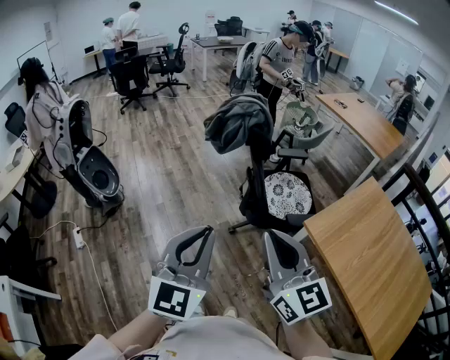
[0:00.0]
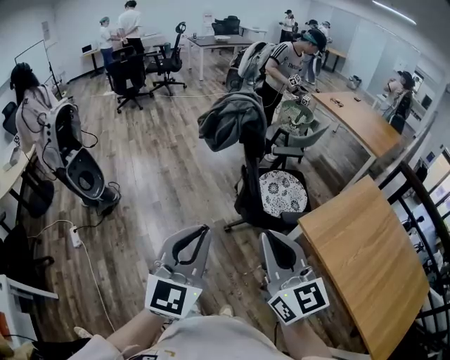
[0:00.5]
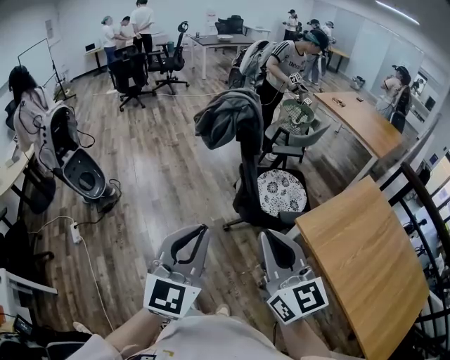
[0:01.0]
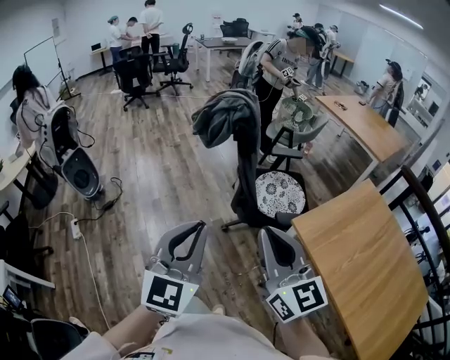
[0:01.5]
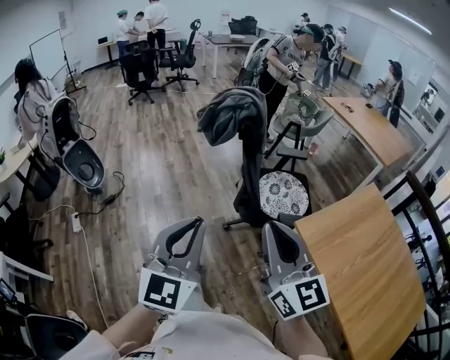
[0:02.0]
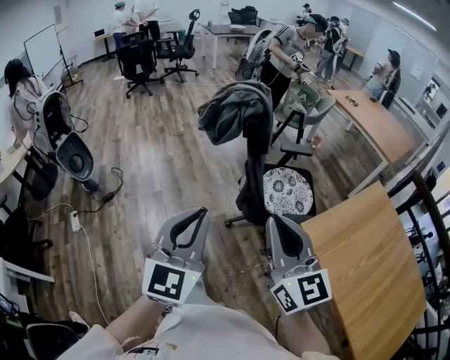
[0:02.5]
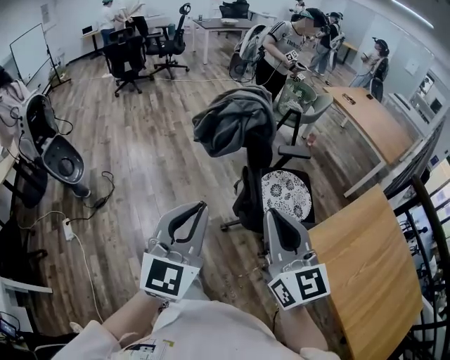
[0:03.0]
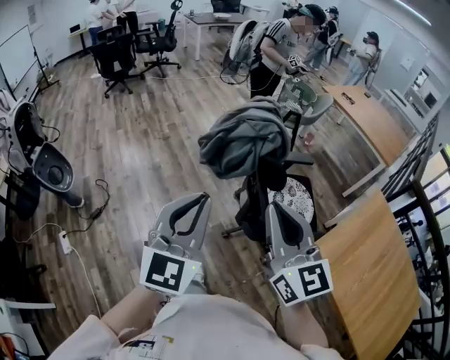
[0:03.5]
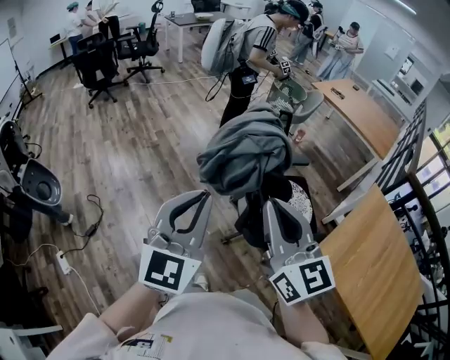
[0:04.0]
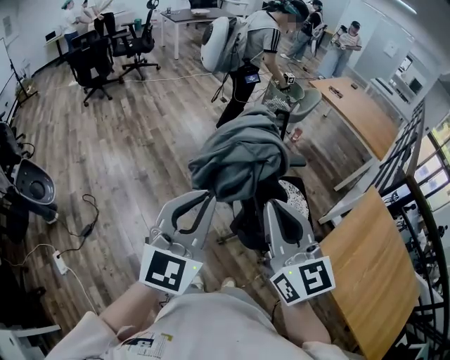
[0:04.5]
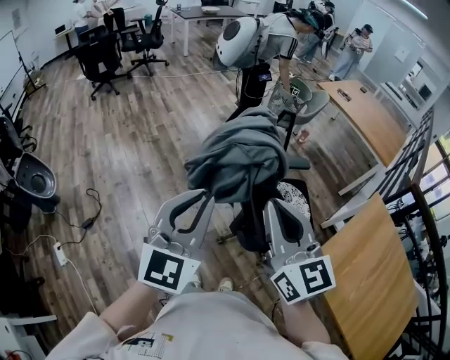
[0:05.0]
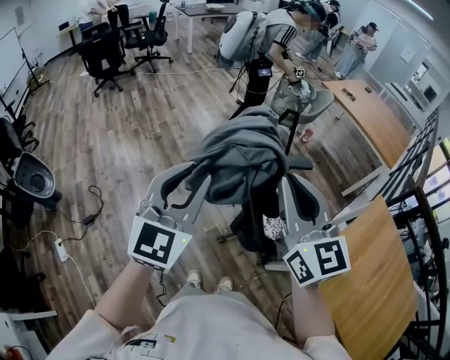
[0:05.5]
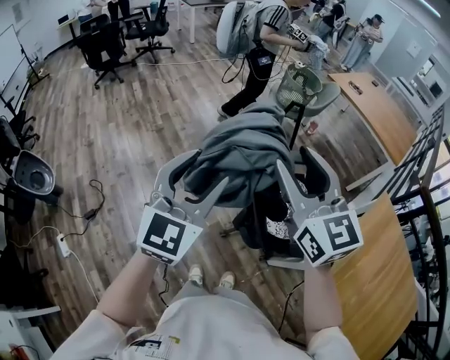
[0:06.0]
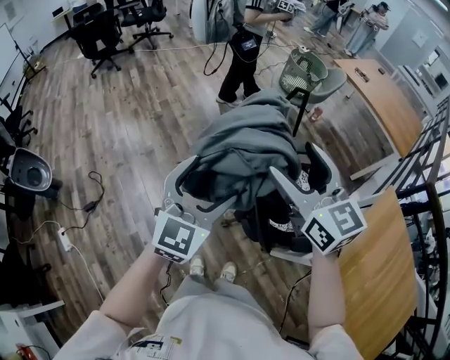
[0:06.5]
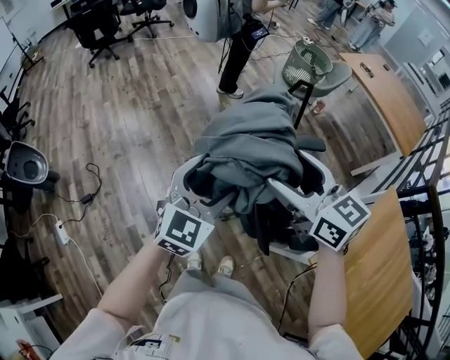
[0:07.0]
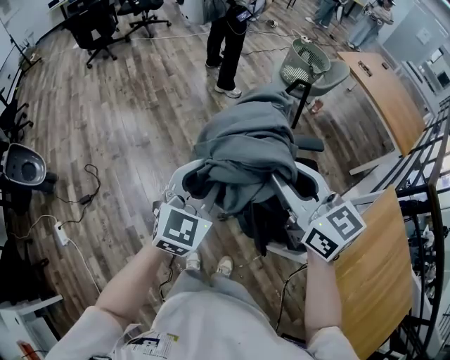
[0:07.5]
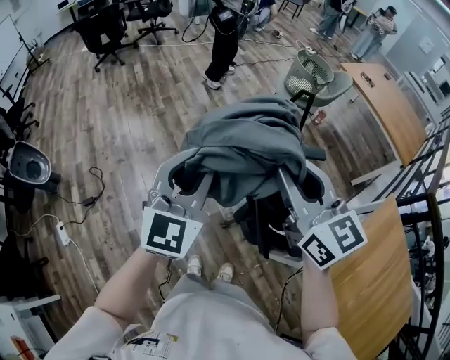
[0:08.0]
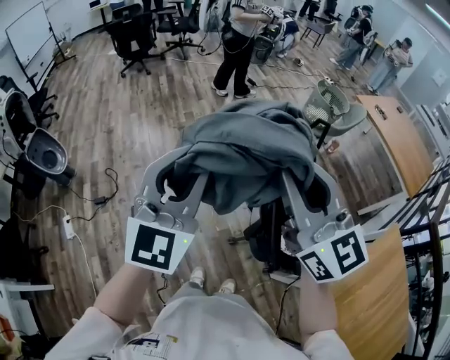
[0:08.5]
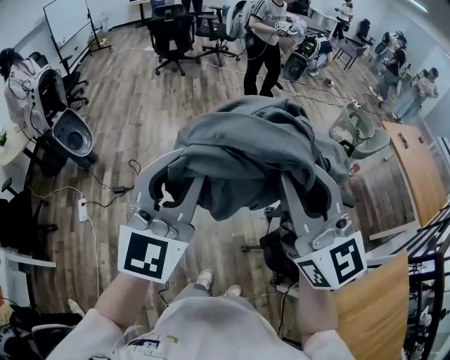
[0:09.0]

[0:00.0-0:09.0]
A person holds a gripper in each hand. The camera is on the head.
0:00.0 to 0:02.0: Both grippers travel together to the right, about 5 cm.
0:02.0 to 0:04.5: The pair of grippers is taken forward, about 40 cm.
0:04.5 to 0:07.0: Both grippers move forward and downward, approximately 25 cm. The left gripper opens up. The right gripper rotates some 30 degrees, and opens its fingers.
0:07.0 to 0:09.0: Both grippers travel together to the left and upward, about 30 cm. The right gripper turns by approximately 30 degrees, and closes its fingers, while the left gripper rotates about 40 degrees, and closes up.

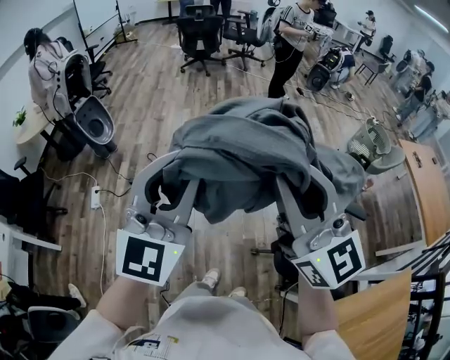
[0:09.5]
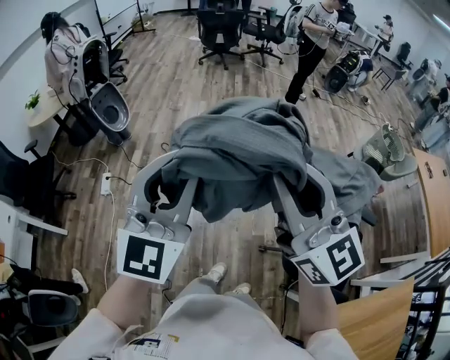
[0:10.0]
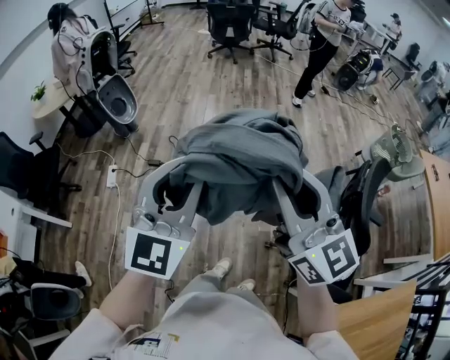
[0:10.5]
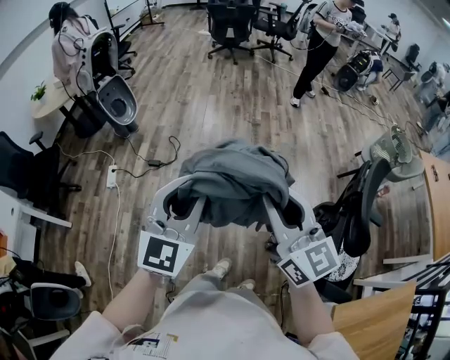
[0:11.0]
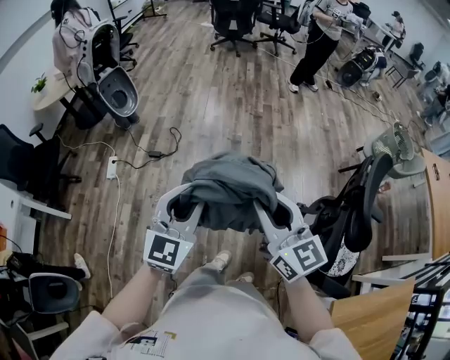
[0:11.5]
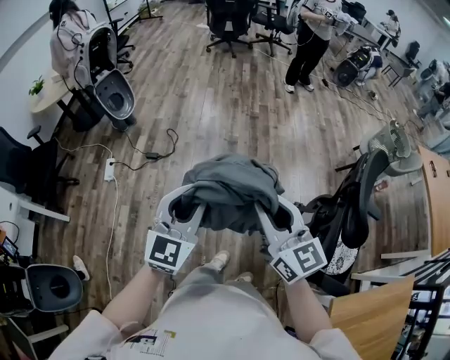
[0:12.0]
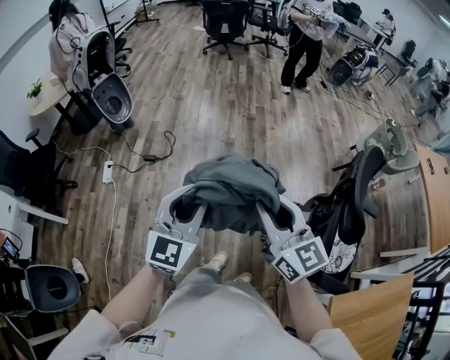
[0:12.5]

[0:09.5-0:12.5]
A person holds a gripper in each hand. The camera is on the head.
0:09.5 to 0:11.0: The grippers both shift downward and to the left by approximately 15 cm.
0:11.0 to 0:12.5: The right gripper ends up some 5 cm from where it was. The left gripper shifts about 5 cm downward.

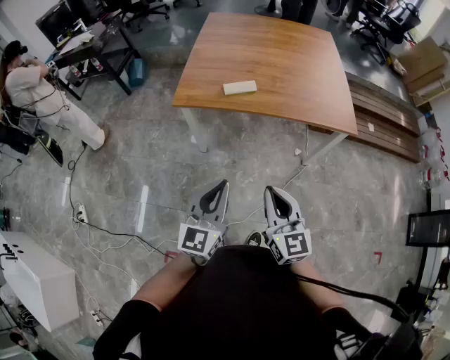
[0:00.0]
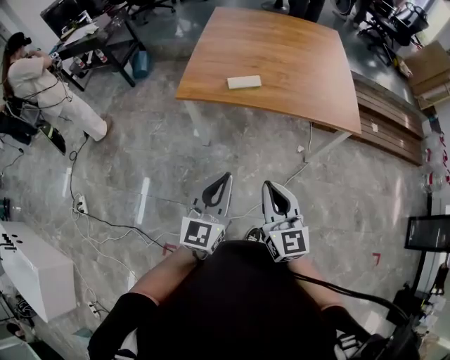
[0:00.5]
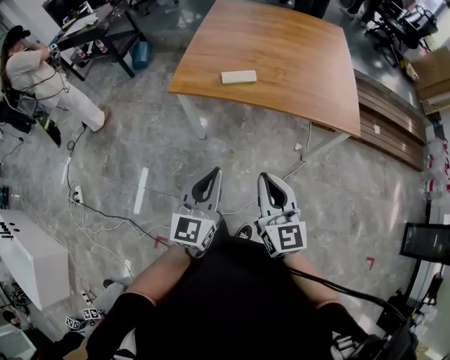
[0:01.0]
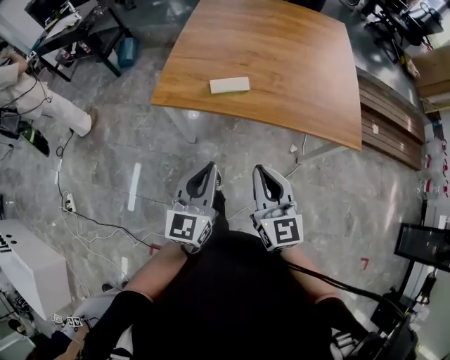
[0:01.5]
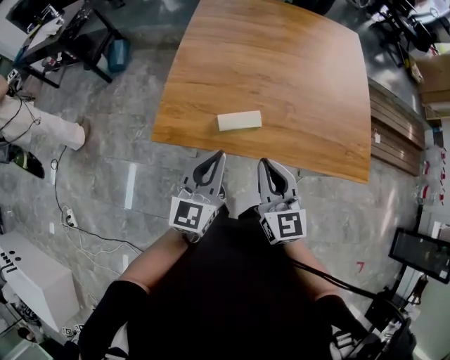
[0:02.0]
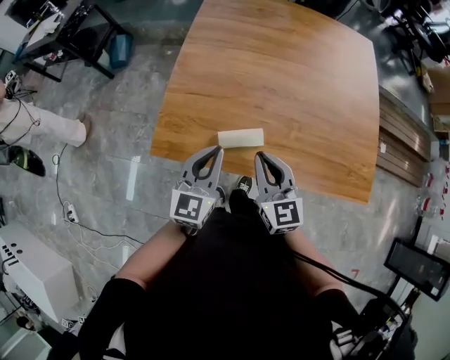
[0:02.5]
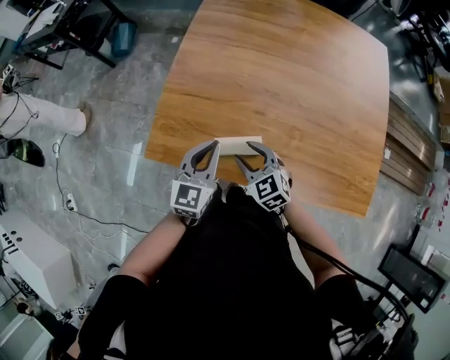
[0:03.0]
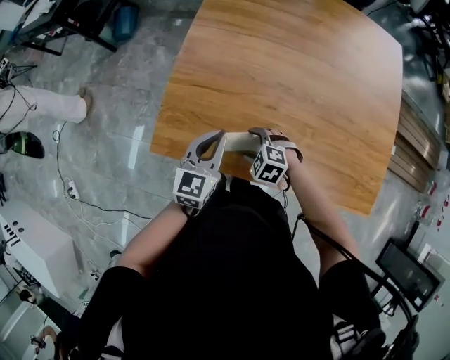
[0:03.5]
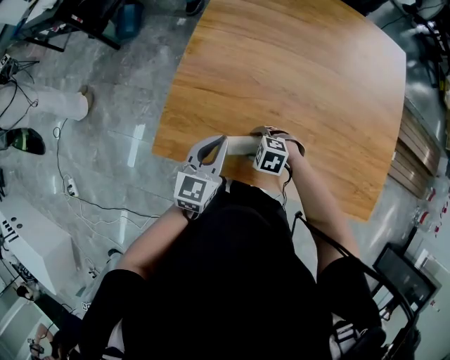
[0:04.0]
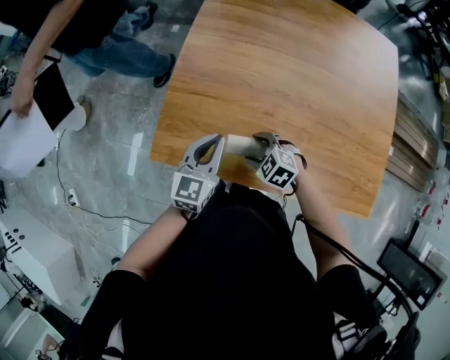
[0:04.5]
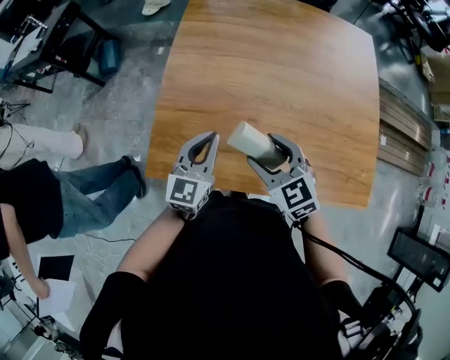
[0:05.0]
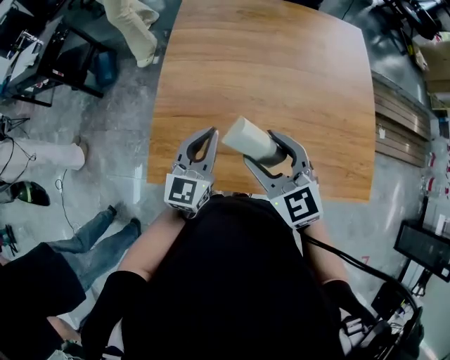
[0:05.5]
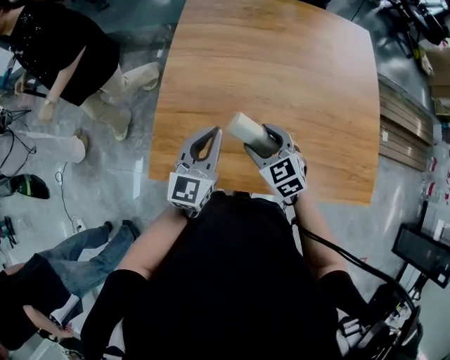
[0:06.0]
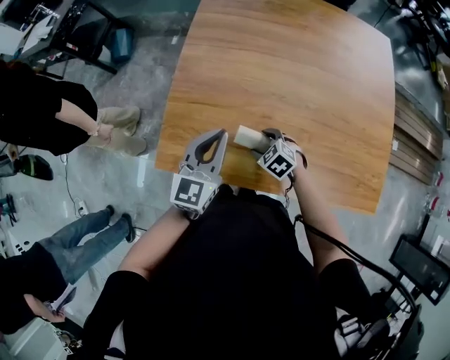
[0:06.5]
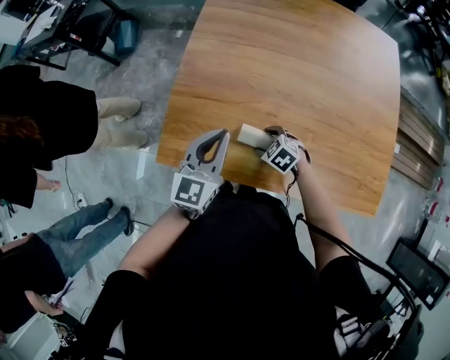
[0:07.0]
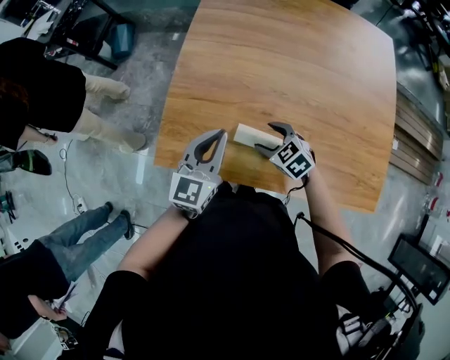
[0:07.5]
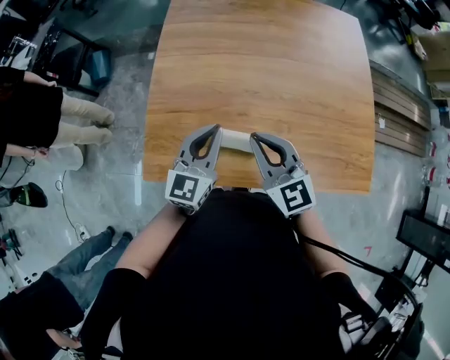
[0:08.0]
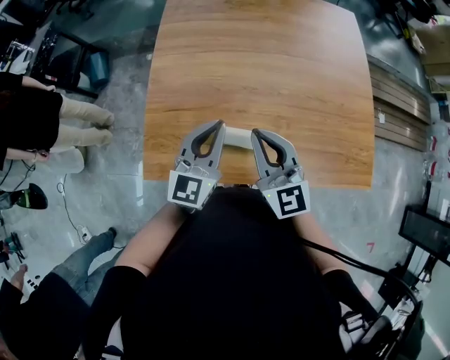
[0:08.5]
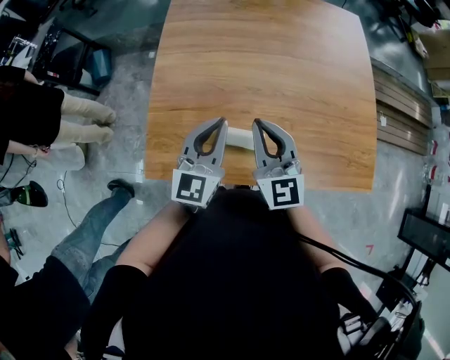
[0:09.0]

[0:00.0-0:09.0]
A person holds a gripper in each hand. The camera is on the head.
0:00.0 to 0:02.0: Both grippers are carried forward, about 40 cm.
0:02.0 to 0:04.5: The right gripper heads downward, covering roughly 25 cm, points its fingers some 50 degrees further downward, and opens its fingers. The left gripper shifts by roughly 25 cm.
0:04.5 to 0:07.0: The right gripper travels upward and back again, some 25 cm each way.
0:07.0 to 0:09.0: The left gripper shifts by approximately 10 cm. Meanwhile the right gripper travels upward by about 30 cm, points its fingers some 60 degrees further upward, and closes up.

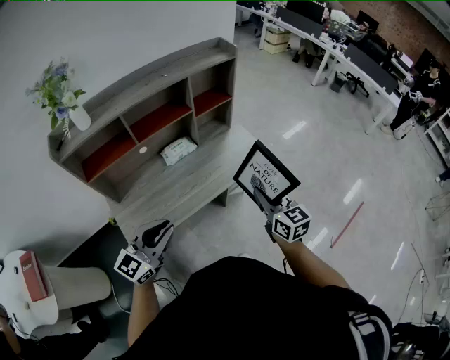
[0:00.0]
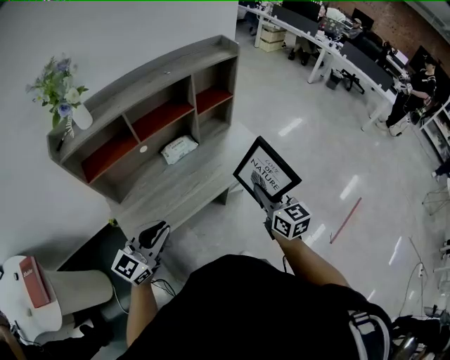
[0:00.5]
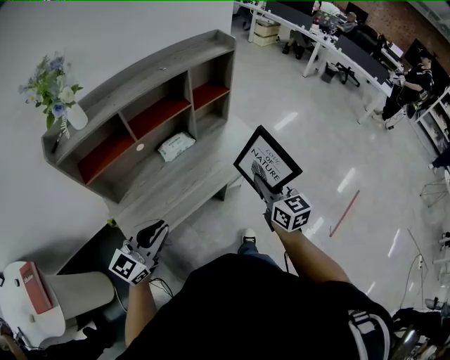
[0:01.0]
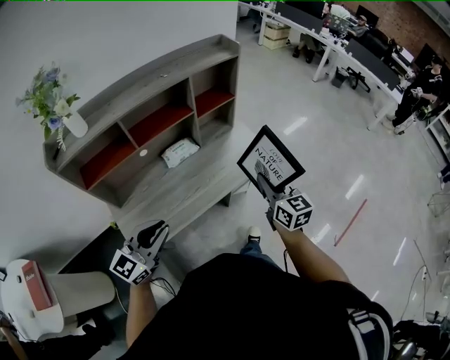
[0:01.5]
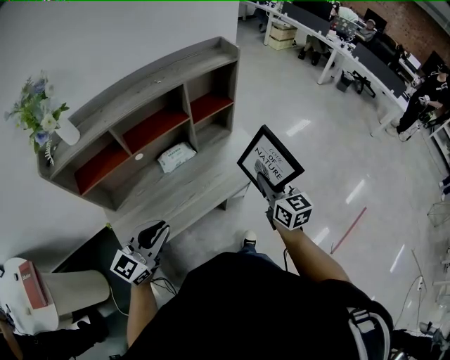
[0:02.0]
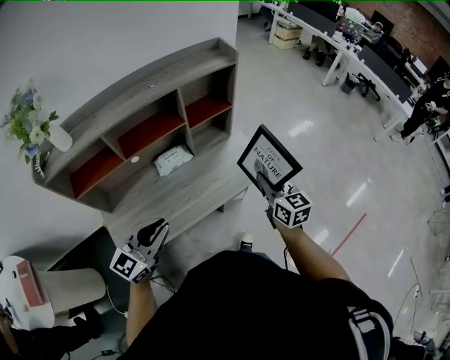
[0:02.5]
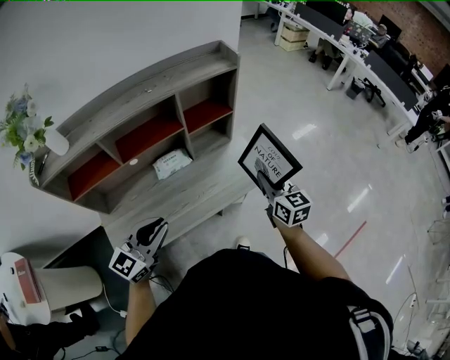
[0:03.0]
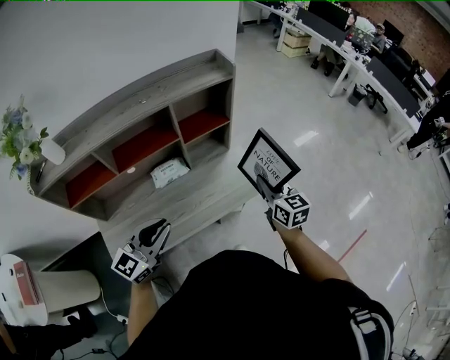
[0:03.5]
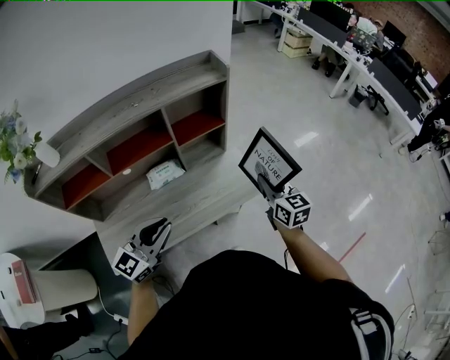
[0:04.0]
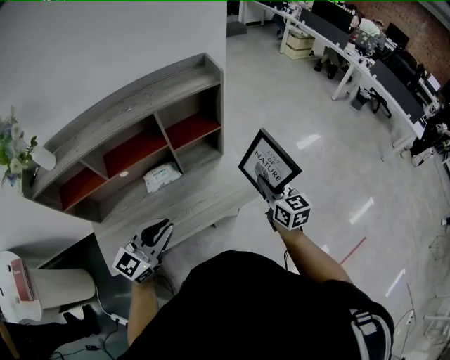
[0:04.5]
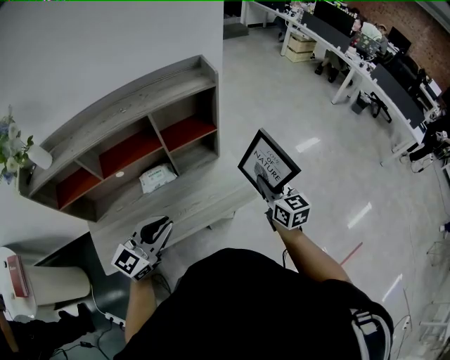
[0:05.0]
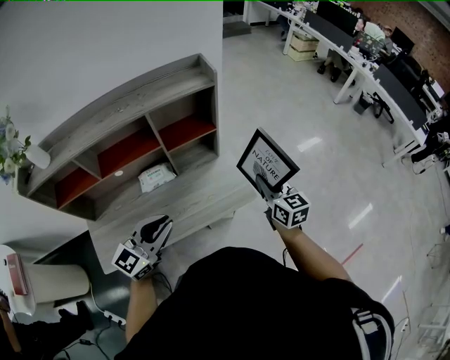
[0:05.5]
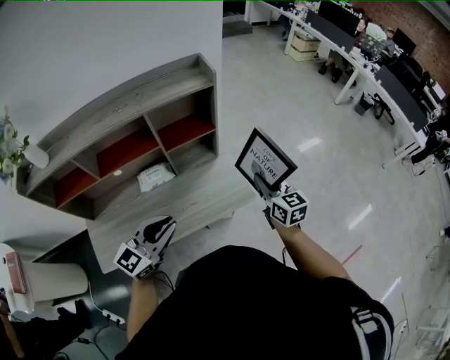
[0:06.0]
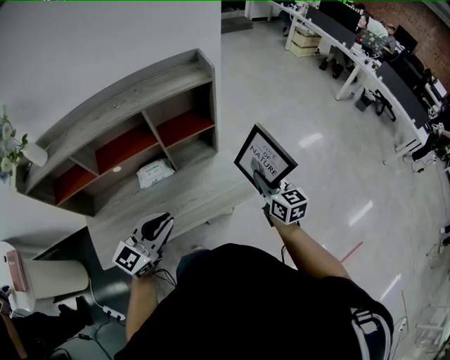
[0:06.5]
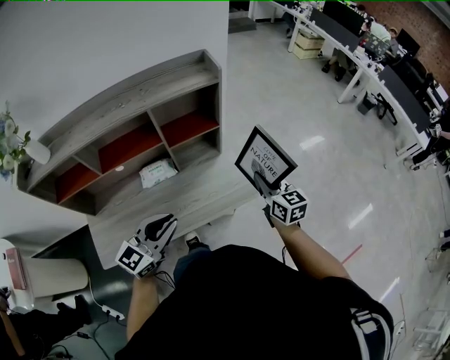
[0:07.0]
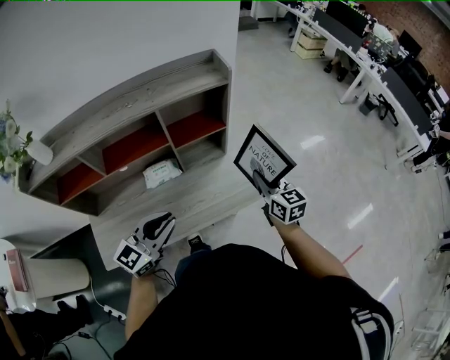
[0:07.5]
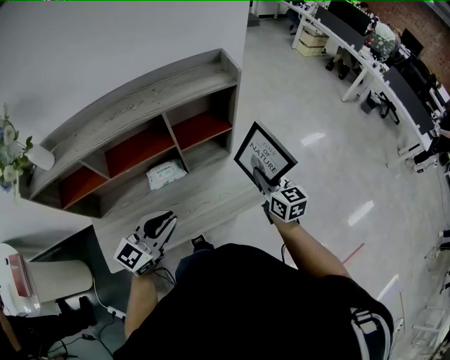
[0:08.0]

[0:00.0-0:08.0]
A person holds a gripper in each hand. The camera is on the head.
0:00.0 to 0:02.0: The left gripper is displaced forward by about 10 cm. Meanwhile the right gripper is displaced forward by about 15 cm.
0:02.0 to 0:04.0: The two grippers go approximately 15 cm forward and to the right.
0:04.0 to 0:06.0: The right gripper moves forward, about 5 cm. Meanwhile the left gripper shifts some 10 cm to the right.
0:06.0 to 0:08.0: Both grippers move to the left, roughly 5 cm.
